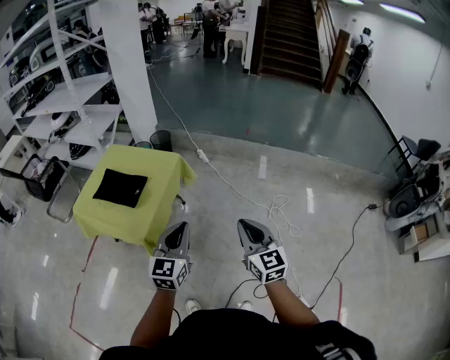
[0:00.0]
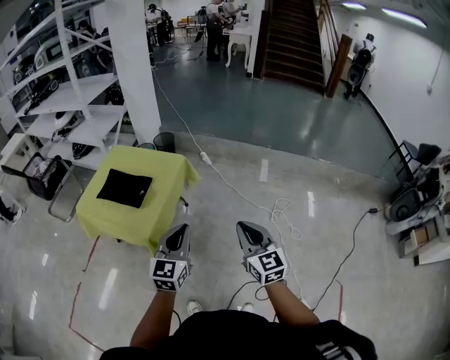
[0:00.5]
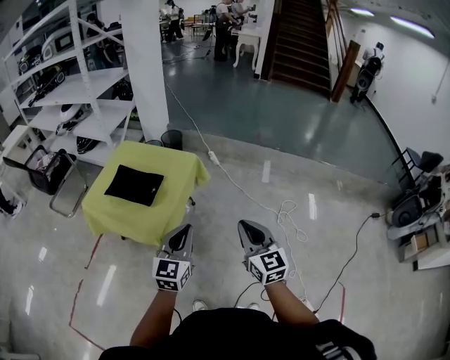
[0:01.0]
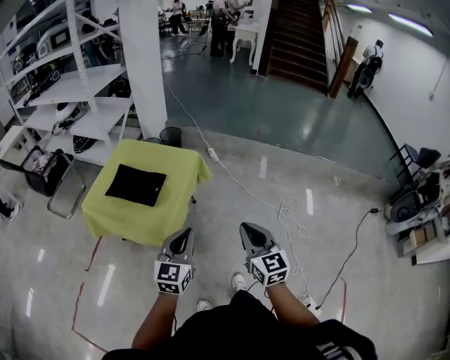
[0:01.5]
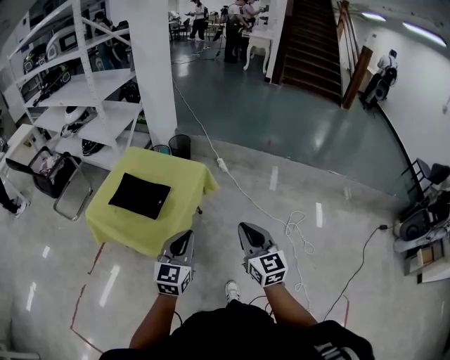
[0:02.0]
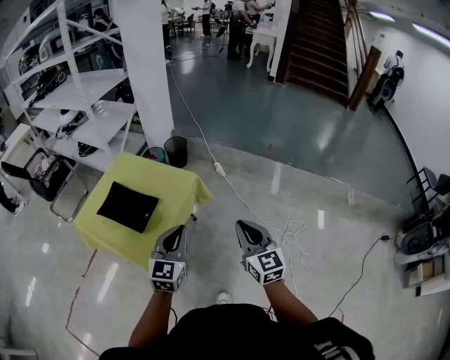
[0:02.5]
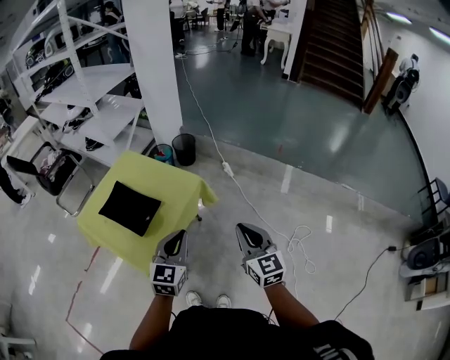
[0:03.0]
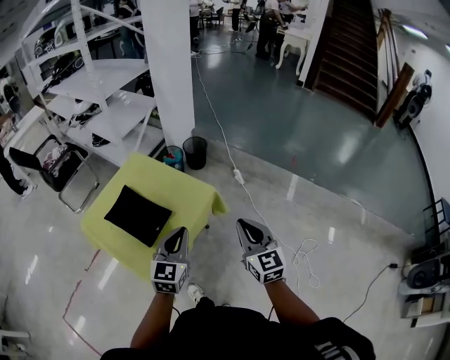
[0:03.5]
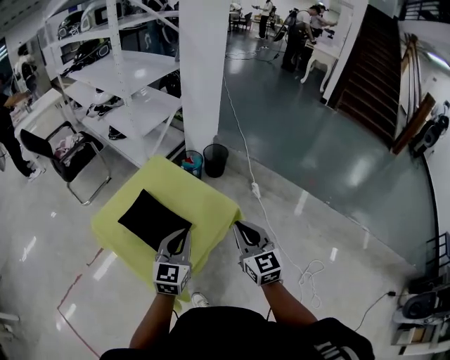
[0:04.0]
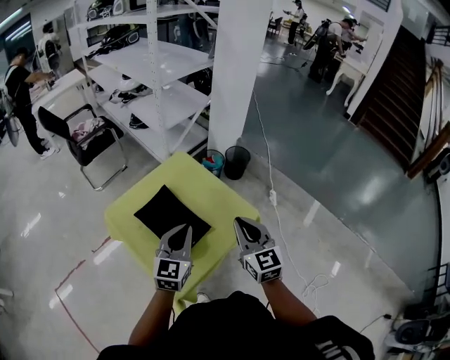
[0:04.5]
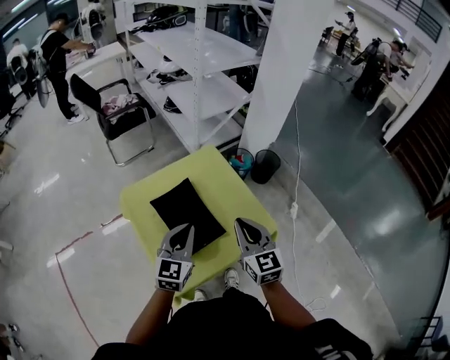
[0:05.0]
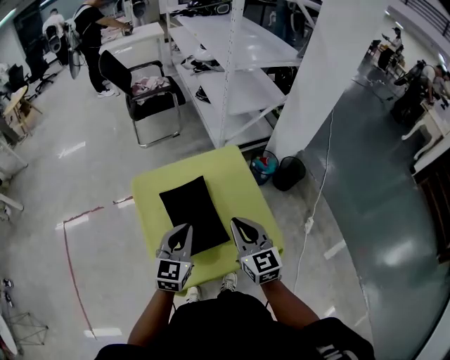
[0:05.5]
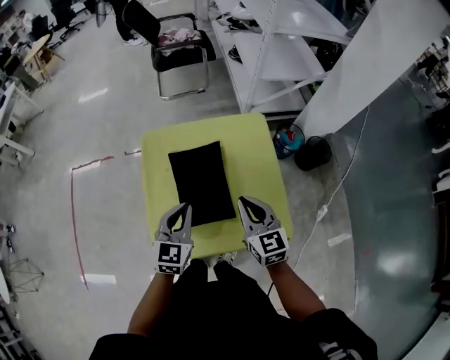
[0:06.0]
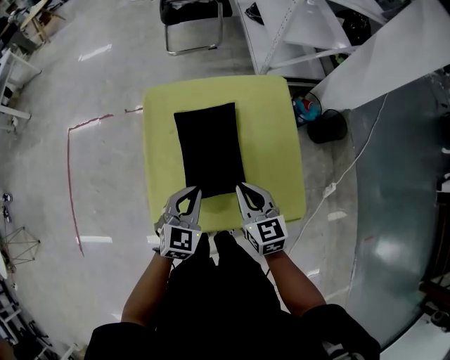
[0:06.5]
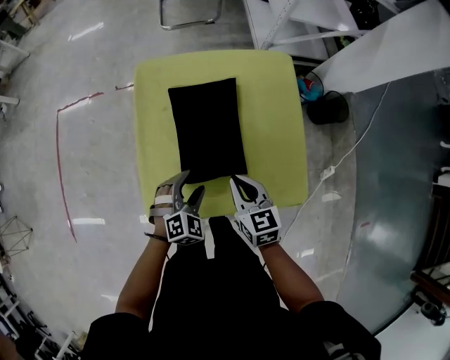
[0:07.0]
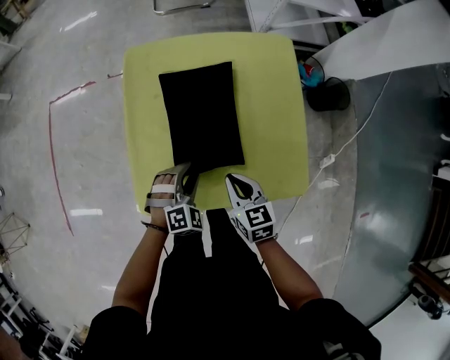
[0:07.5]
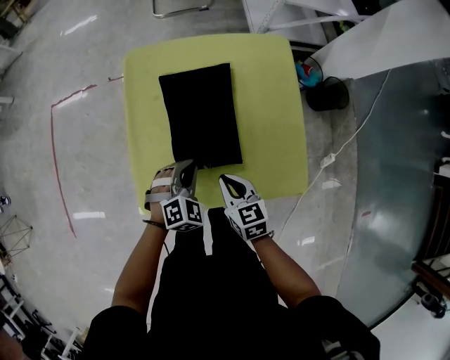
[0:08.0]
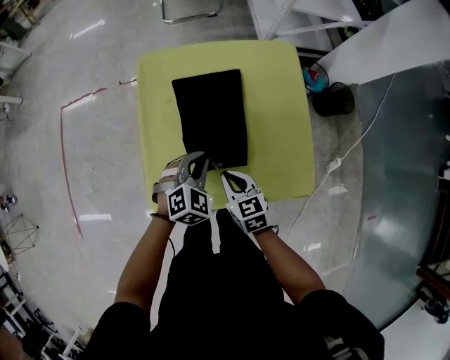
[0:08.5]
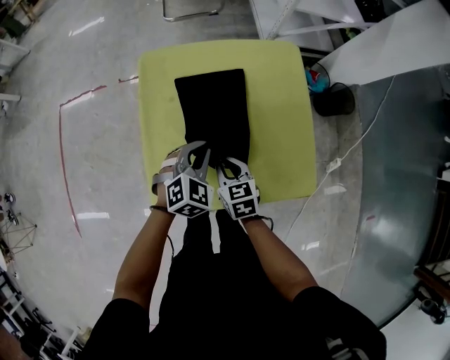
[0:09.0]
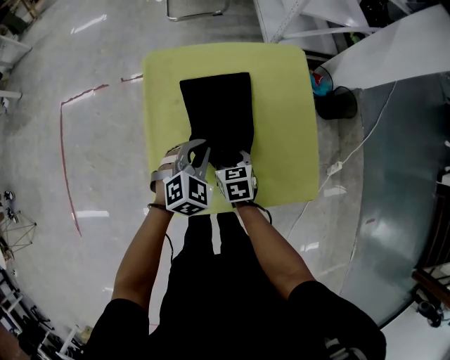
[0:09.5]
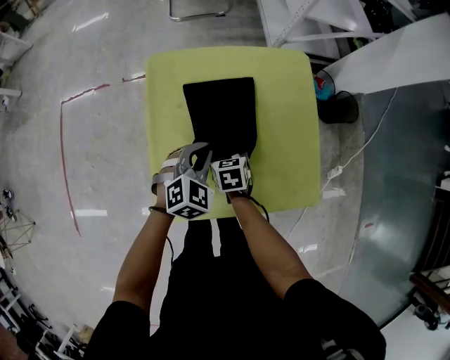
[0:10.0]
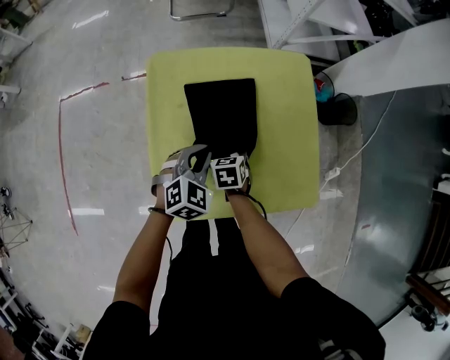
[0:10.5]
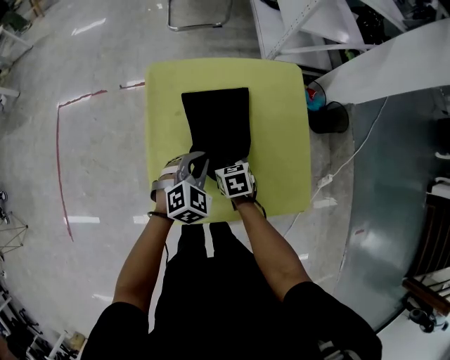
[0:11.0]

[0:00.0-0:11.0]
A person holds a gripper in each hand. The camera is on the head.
0:00.0 to 0:02.0: Both grippers travel together to the left and forward, about 15 cm.
0:02.0 to 0:03.5: Both grippers travel together forward, roughly 25 cm.
0:03.5 to 0:05.5: The right gripper ends up about 35 cm from where it was, and rotates some 40 degrees; the left gripper shifts by approximately 25 cm, and swivels some 40 degrees.
0:05.5 to 0:07.5: The grippers both shift downward by some 25 cm. The right gripper rotates approximately 30 degrees; the left gripper angles its fingers downward, by about 30 degrees, and opens.
0:07.5 to 0:09.0: The right gripper moves to the left and forward, some 10 cm. Meanwhile the left gripper shifts some 10 cm upward and forward, and closes.
0:09.0 to 0:11.0: The right gripper shifts about 10 cm forward and downward, and opens up.

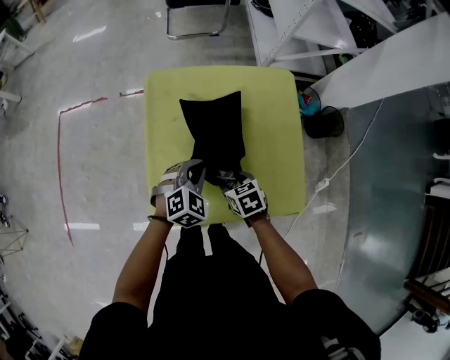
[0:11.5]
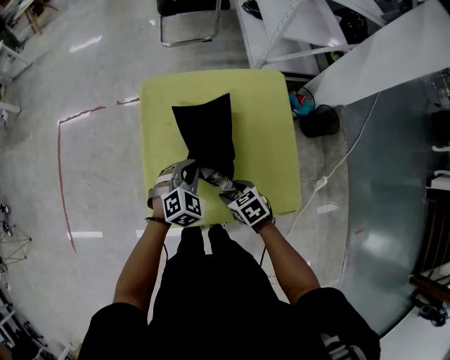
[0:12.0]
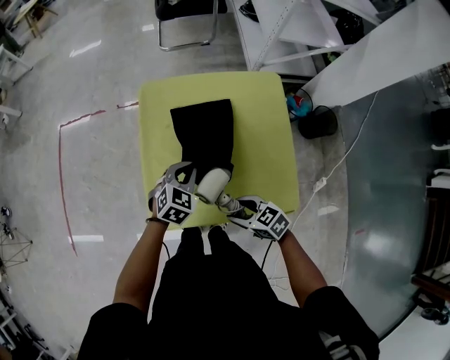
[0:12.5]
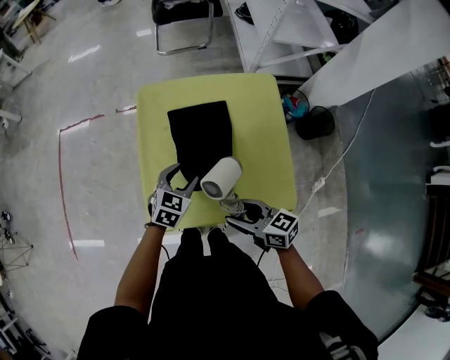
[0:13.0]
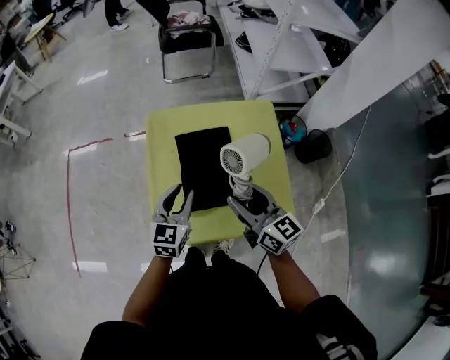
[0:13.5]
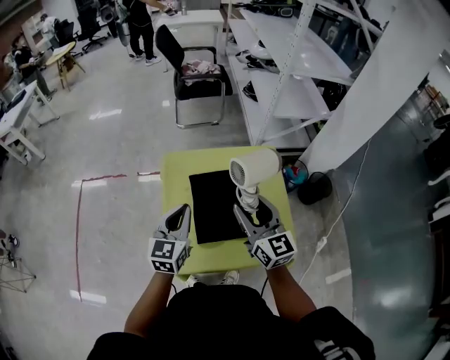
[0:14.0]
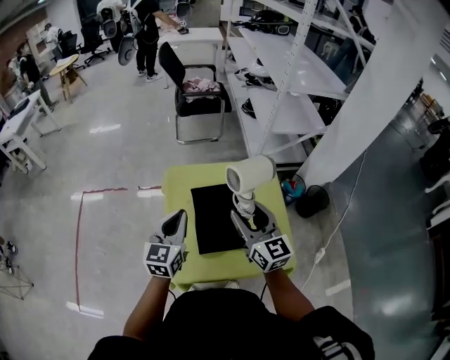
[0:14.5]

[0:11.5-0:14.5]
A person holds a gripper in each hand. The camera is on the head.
0:11.5 to 0:13.0: The right gripper goes roughly 15 cm upward and backward, and tilts its fingers roughly 40 degrees upward; the left gripper rotates roughly 20 degrees, and opens its fingers.
0:13.0 to 0:14.5: The right gripper shifts approximately 25 cm upward and forward, and turns by roughly 50 degrees. Meanwhile the left gripper is displaced upward by approximately 25 cm, tilts its fingers some 30 degrees upward, and closes.

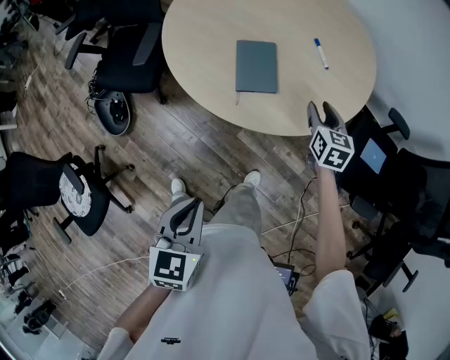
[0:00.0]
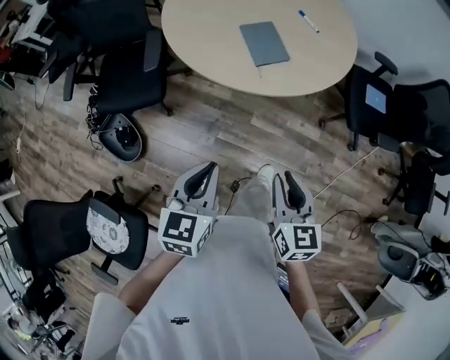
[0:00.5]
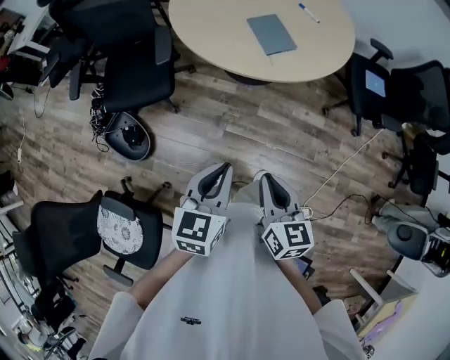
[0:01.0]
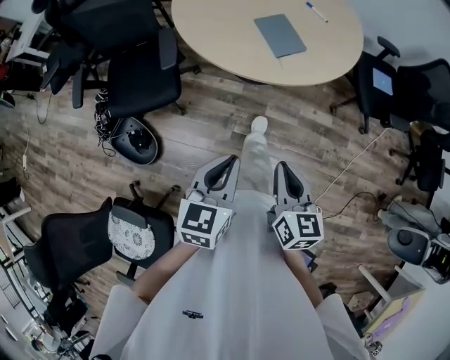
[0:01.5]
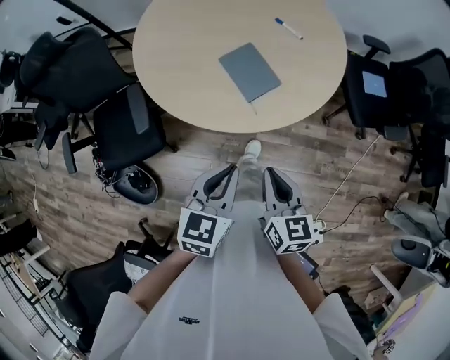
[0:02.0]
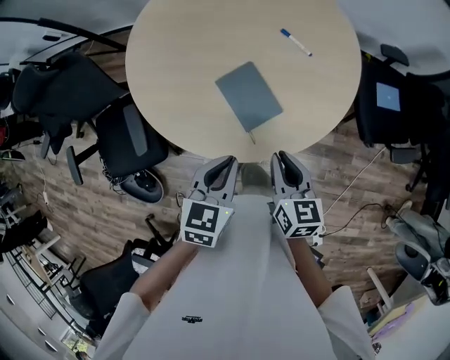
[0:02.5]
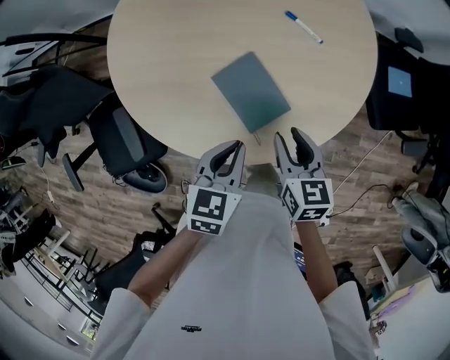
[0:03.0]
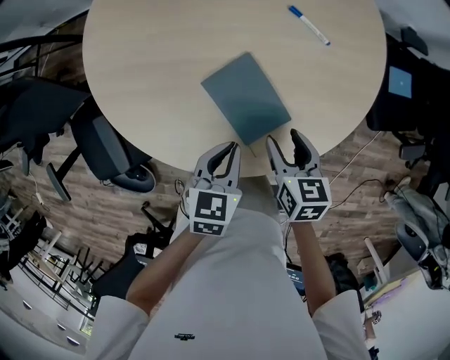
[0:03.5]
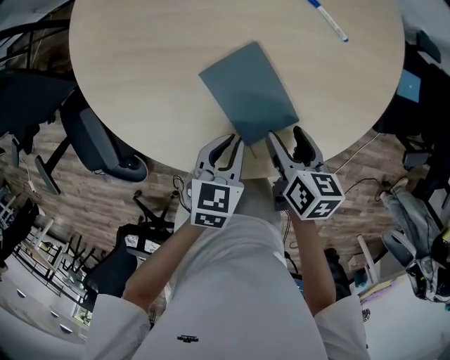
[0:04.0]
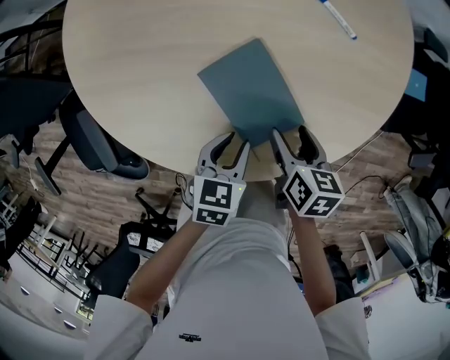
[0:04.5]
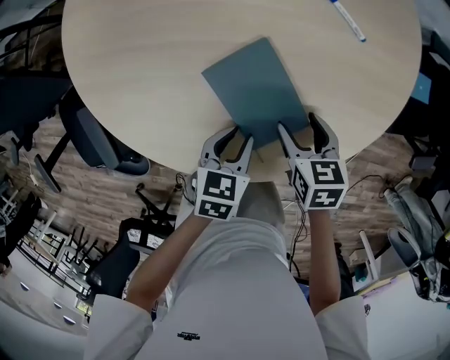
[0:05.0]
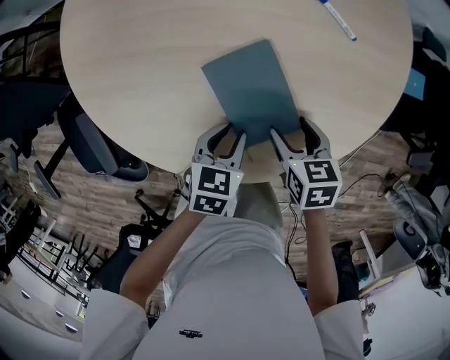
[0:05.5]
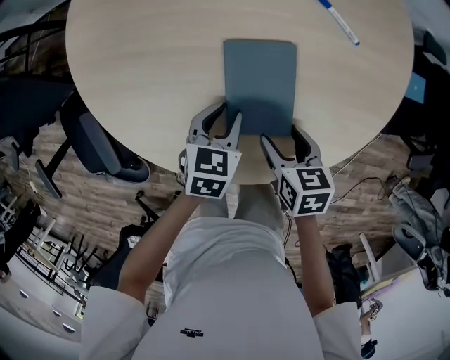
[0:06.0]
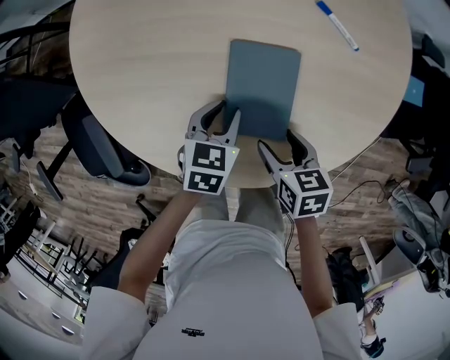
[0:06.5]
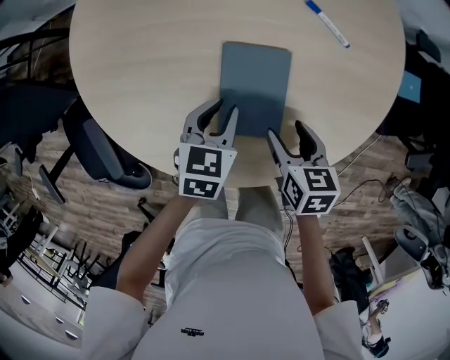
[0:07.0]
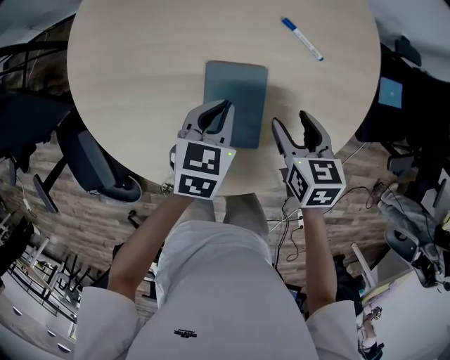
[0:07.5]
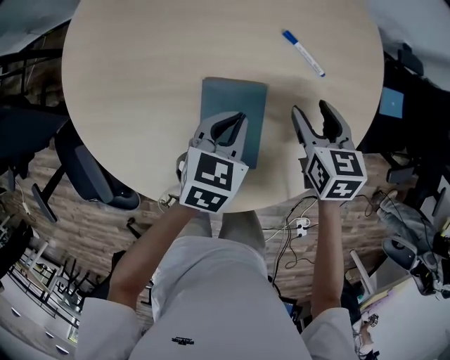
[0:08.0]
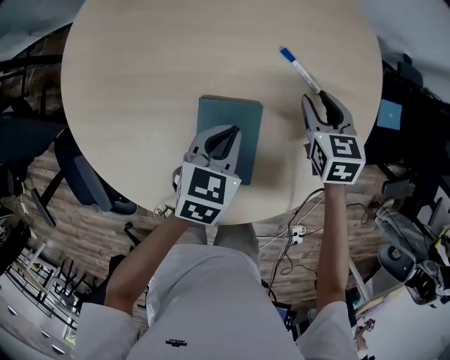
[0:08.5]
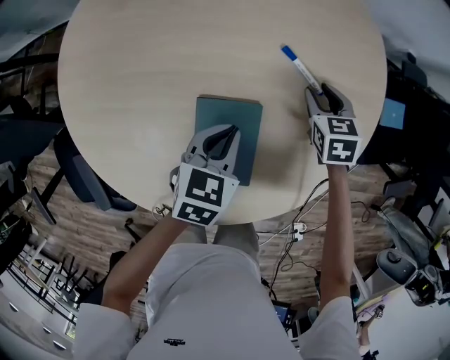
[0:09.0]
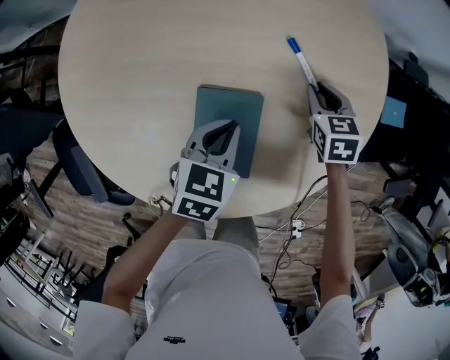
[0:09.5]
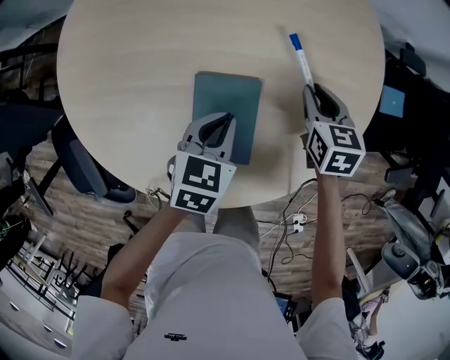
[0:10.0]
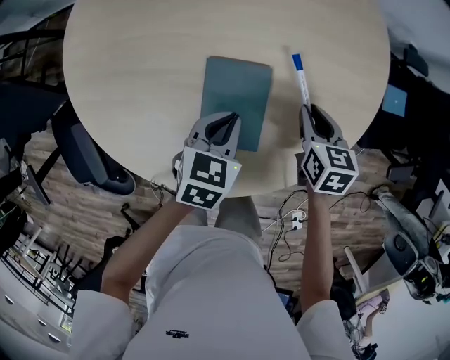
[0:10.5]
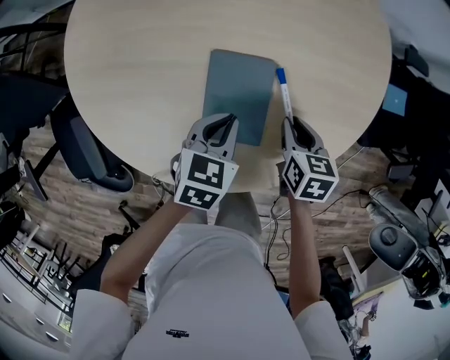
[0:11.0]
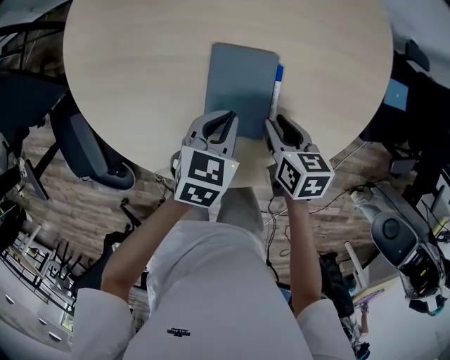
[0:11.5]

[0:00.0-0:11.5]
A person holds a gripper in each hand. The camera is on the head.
0:00.0 to 0:02.0: The left gripper heads to the left, covering approximately 15 cm, travels backward and back again, some 20 cm each way, and rotates approximately 30 degrees. Meanwhile the right gripper goes roughly 35 cm backward and to the left, rotates about 30 degrees, and closes its fingers.
0:02.0 to 0:04.0: The two grippers go approximately 35 cm forward and downward. The right gripper changes its angle by some 30 degrees, and opens.
0:04.0 to 0:06.0: The left gripper shifts roughly 5 cm forward, and opens up.
0:06.0 to 0:07.5: The right gripper travels forward, upward and to the right by about 15 cm, while the left gripper shifts roughly 10 cm upward and forward, and closes.
0:07.5 to 0:09.5: The left gripper shifts by approximately 5 cm, while the right gripper is displaced forward and downward by approximately 20 cm, and closes its fingers.
0:09.5 to 0:11.5: The right gripper is displaced backward by approximately 20 cm, and swivels some 30 degrees. Meanwhile the left gripper travels backward by approximately 10 cm.

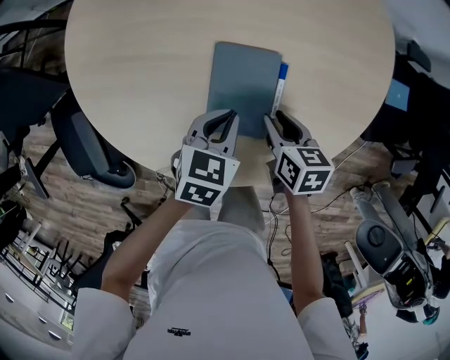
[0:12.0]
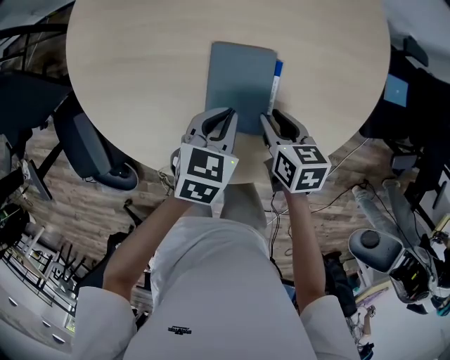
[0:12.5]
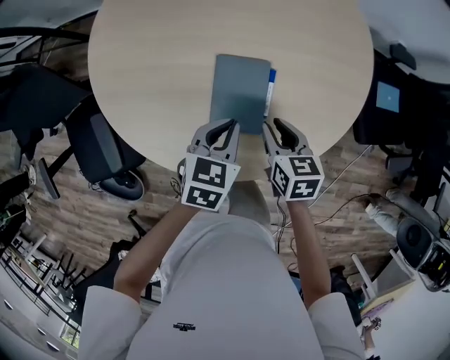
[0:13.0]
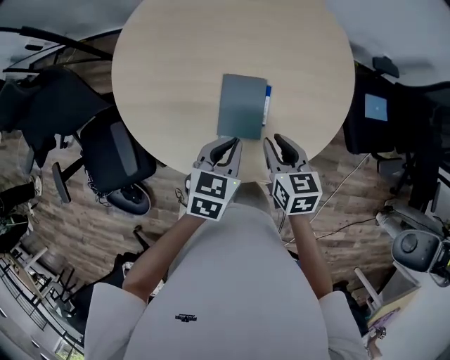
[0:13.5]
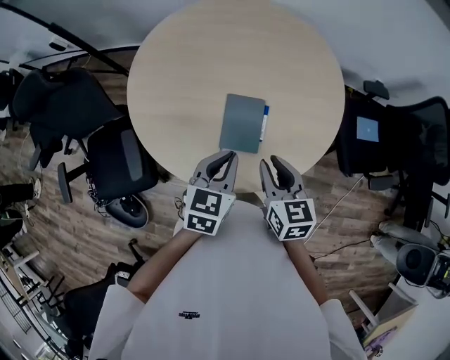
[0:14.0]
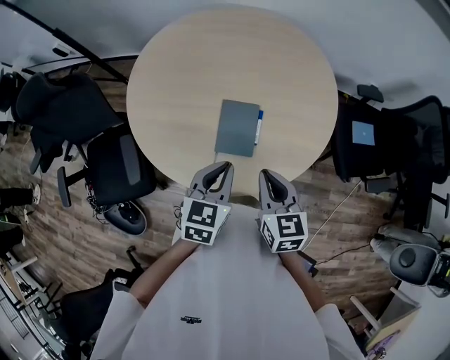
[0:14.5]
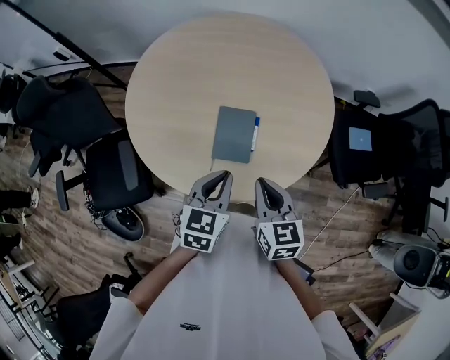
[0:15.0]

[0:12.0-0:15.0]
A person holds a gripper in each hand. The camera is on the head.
0:12.0 to 0:13.5: The left gripper heads upward and backward, covering about 15 cm. Meanwhile the right gripper is displaced upward by some 20 cm.
0:13.5 to 0:15.0: The grippers both shift upward and backward by some 15 cm.
